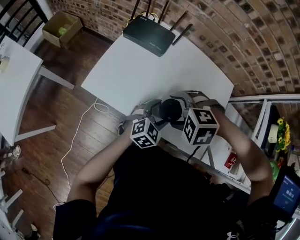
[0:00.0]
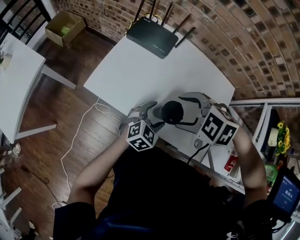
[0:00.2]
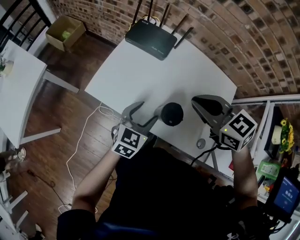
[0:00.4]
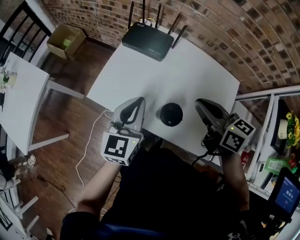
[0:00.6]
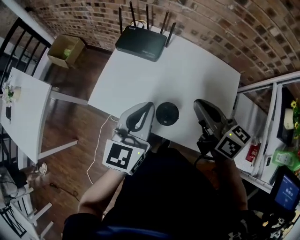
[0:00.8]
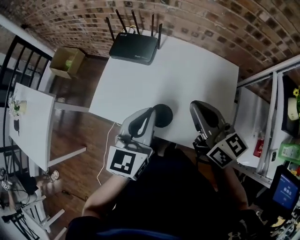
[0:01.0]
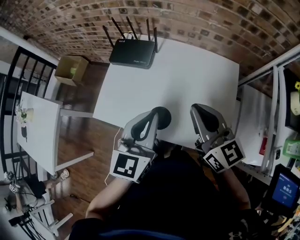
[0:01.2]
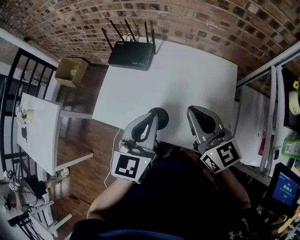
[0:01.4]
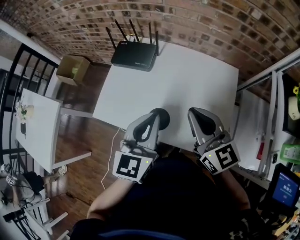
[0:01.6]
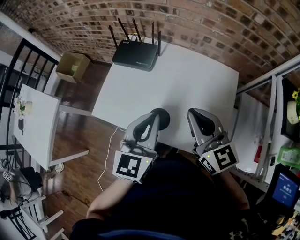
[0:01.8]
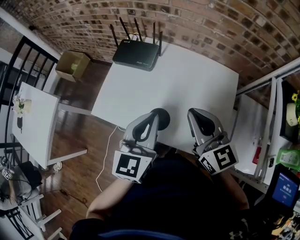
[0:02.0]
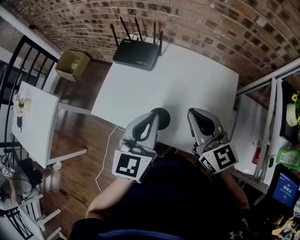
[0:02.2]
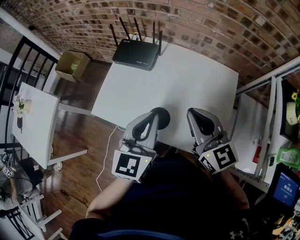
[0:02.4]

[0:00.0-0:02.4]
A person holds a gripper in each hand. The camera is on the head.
0.0 to 1.2 s: The right gripper travels upward by some 15 cm, tilts its fingers approximately 70 degrees upward, and closes its fingers. The left gripper travels upward by approximately 25 cm, changes its angle by roughly 40 degrees, and closes up.
1.2 to 2.4 s: The grippers stay close to where they were, moving slightly.

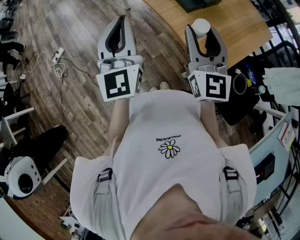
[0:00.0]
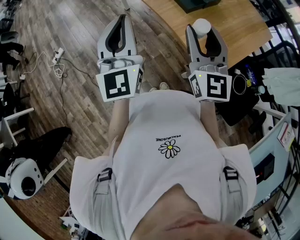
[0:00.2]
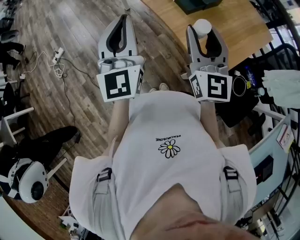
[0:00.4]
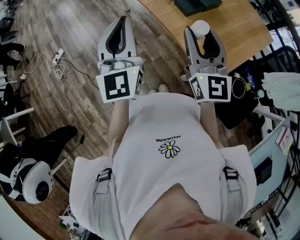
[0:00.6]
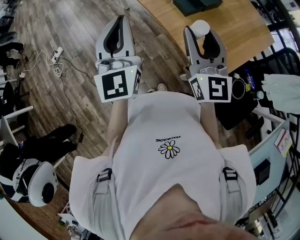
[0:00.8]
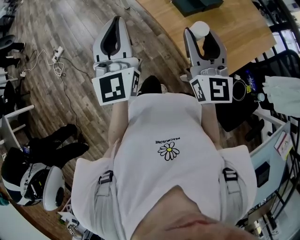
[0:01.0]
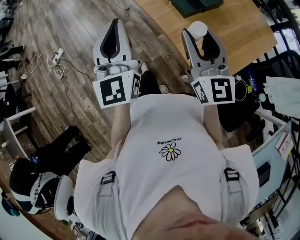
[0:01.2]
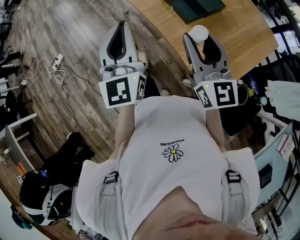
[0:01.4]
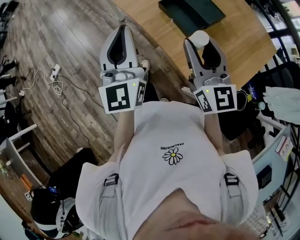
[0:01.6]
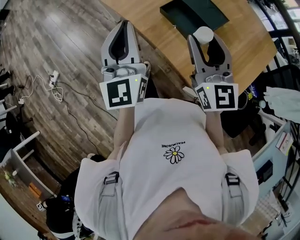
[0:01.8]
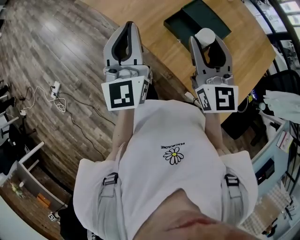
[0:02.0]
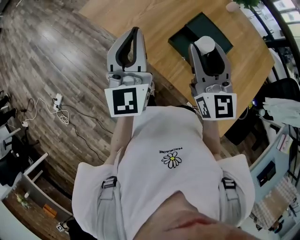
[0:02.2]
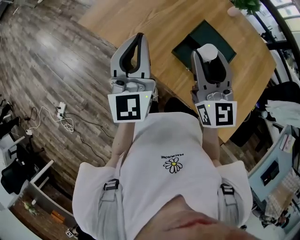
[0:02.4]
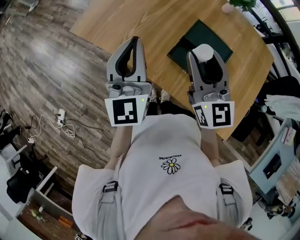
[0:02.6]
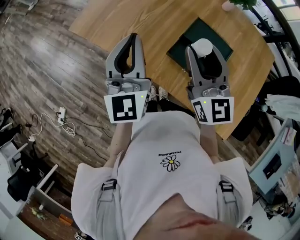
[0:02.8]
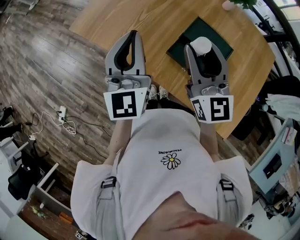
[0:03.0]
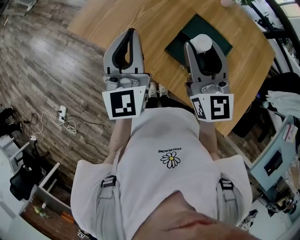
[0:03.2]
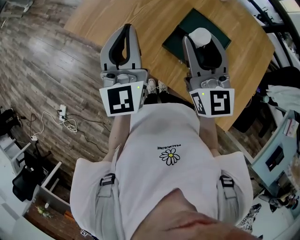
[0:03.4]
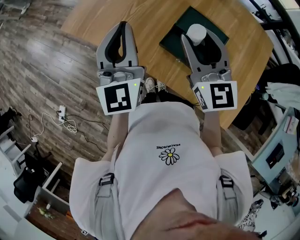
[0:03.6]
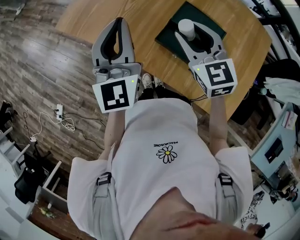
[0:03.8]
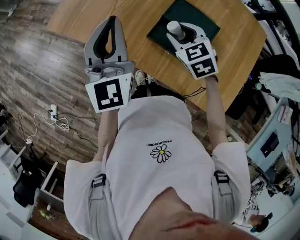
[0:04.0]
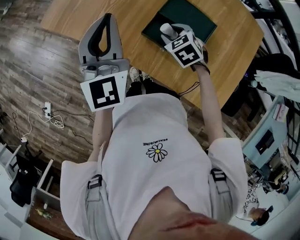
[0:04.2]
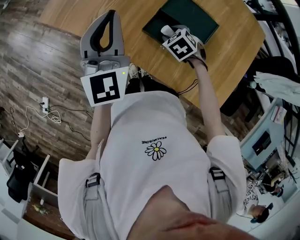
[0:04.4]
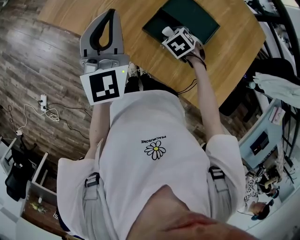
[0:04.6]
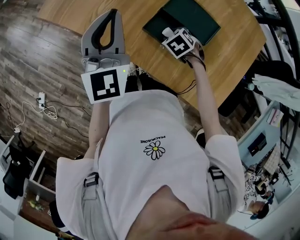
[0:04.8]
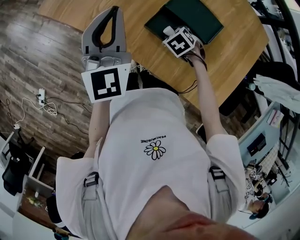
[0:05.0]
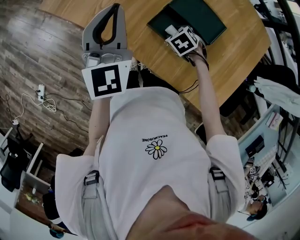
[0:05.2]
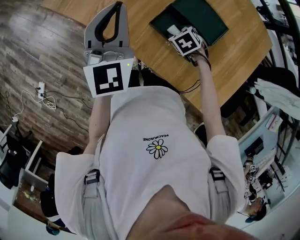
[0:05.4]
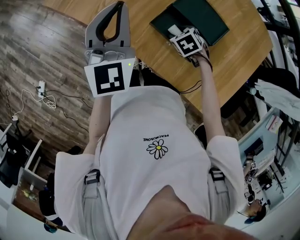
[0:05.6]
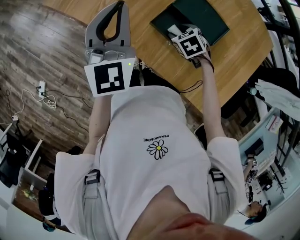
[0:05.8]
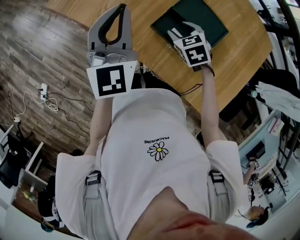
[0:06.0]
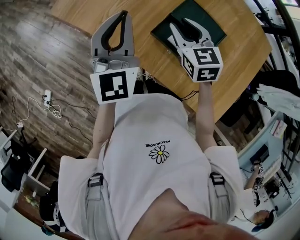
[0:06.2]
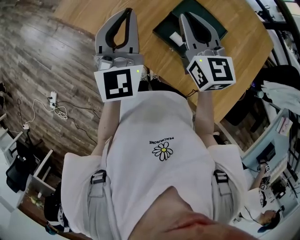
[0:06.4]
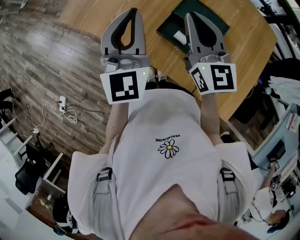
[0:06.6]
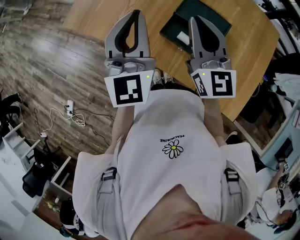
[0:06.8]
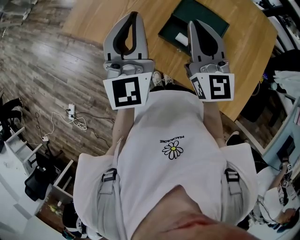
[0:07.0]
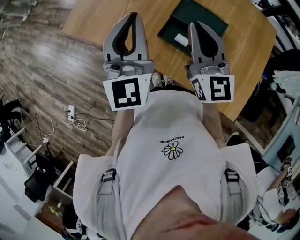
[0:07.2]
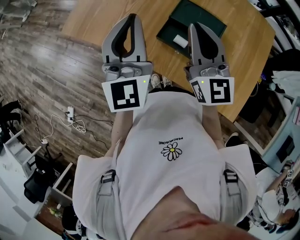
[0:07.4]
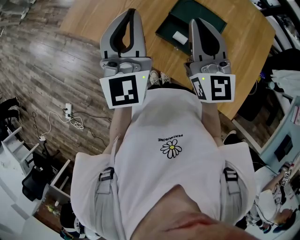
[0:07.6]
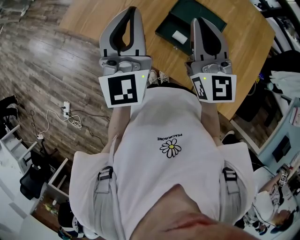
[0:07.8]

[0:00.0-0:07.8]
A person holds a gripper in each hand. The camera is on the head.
0.0 to 1.6 s: The two grippers go roughly 15 cm forward.
1.6 to 3.2 s: Both grippers move forward, roughly 25 cm.
3.2 to 4.6 s: The right gripper travels downward by some 35 cm, and tilts its fingers roughly 80 degrees downward. The left gripper ends up roughly 5 cm from where it was.
4.6 to 6.2 s: The right gripper goes some 20 cm upward, and angles its fingers upward, by about 40 degrees.
6.2 to 7.8 s: The right gripper heads upward and backward, covering about 15 cm, angles its fingers upward, by roughly 40 degrees, and closes its fingers, while the left gripper travels upward by roughly 5 cm.

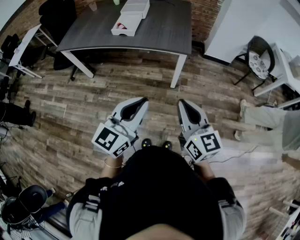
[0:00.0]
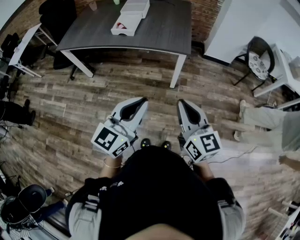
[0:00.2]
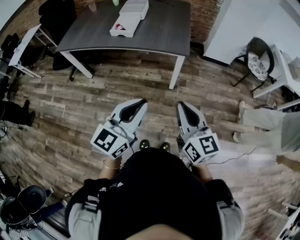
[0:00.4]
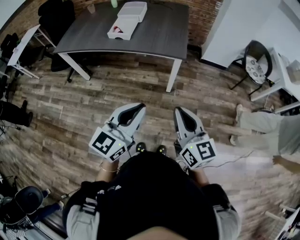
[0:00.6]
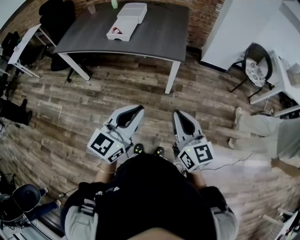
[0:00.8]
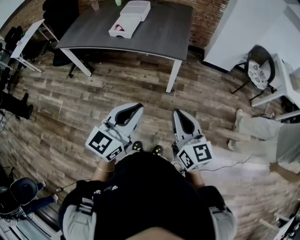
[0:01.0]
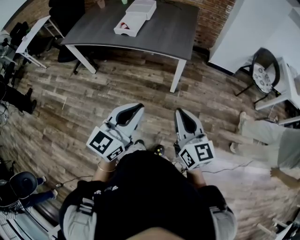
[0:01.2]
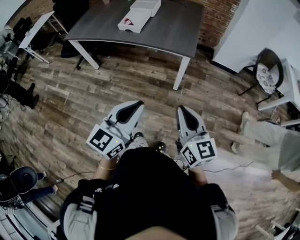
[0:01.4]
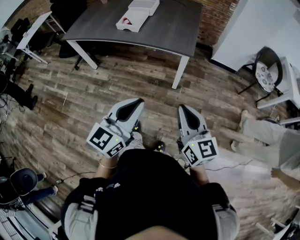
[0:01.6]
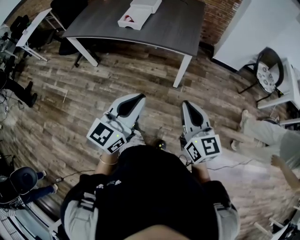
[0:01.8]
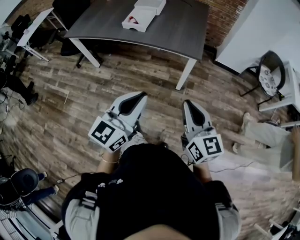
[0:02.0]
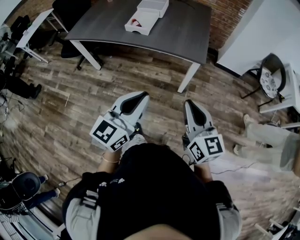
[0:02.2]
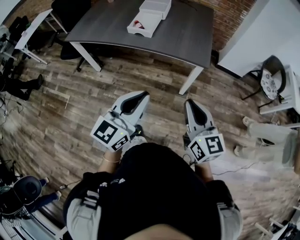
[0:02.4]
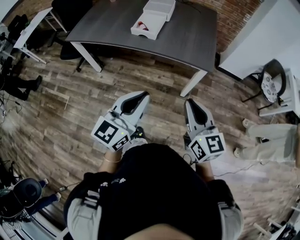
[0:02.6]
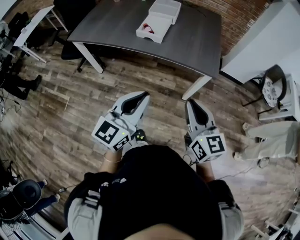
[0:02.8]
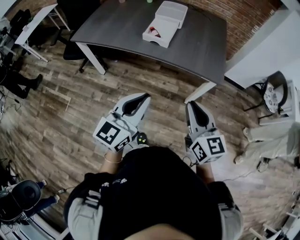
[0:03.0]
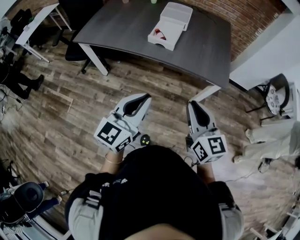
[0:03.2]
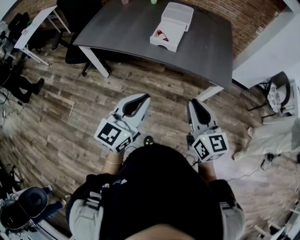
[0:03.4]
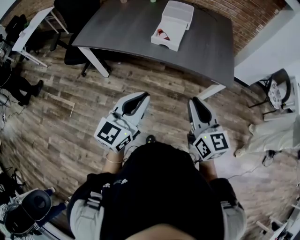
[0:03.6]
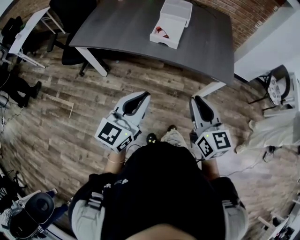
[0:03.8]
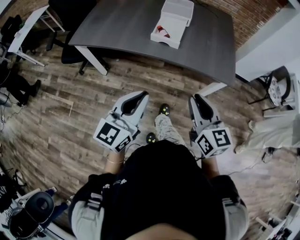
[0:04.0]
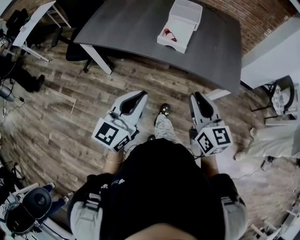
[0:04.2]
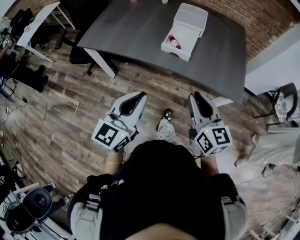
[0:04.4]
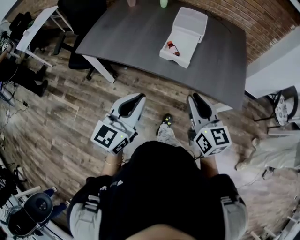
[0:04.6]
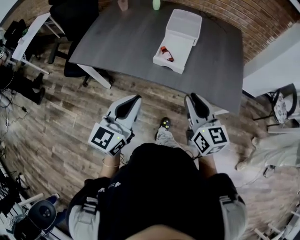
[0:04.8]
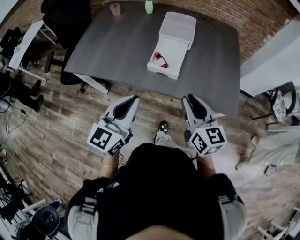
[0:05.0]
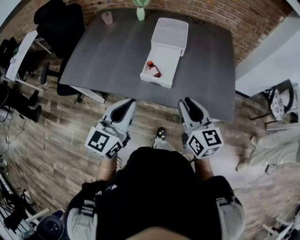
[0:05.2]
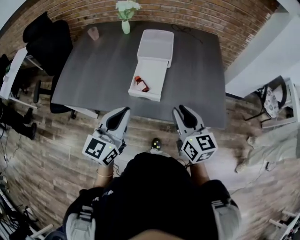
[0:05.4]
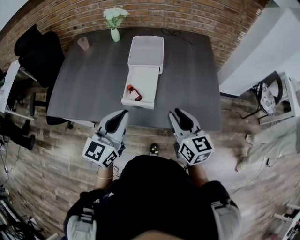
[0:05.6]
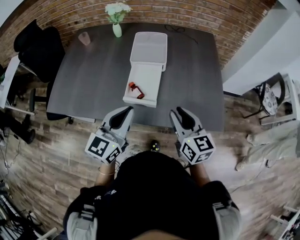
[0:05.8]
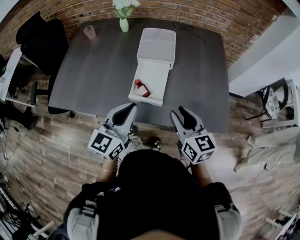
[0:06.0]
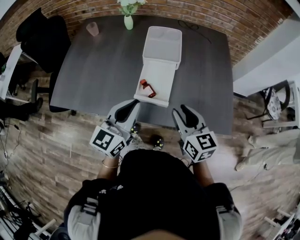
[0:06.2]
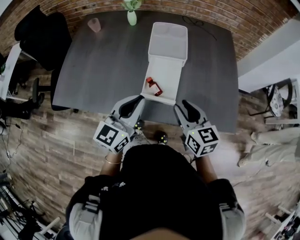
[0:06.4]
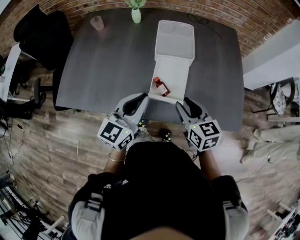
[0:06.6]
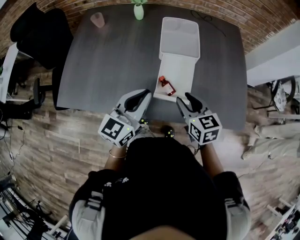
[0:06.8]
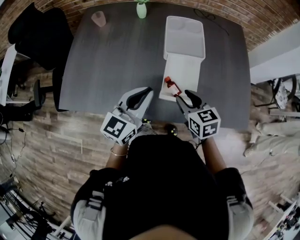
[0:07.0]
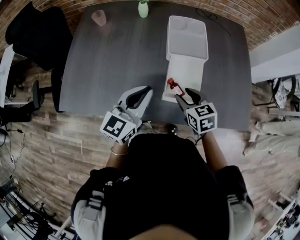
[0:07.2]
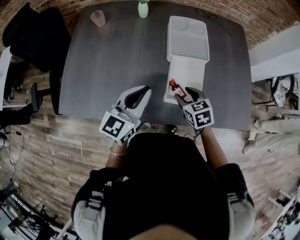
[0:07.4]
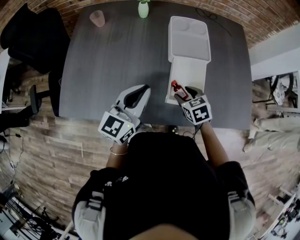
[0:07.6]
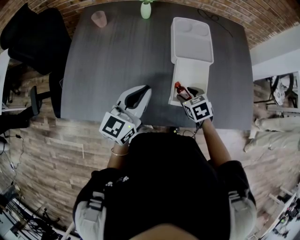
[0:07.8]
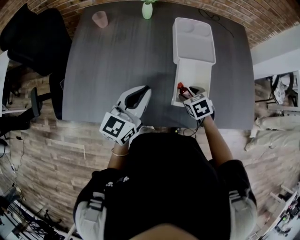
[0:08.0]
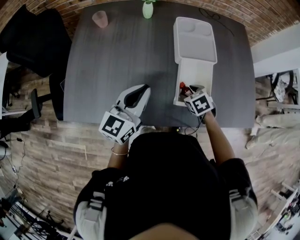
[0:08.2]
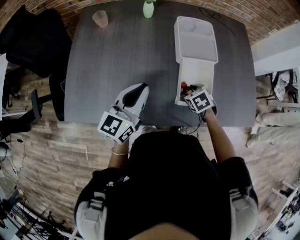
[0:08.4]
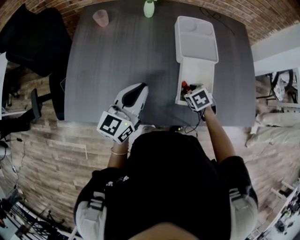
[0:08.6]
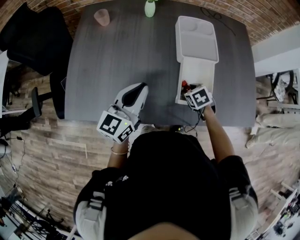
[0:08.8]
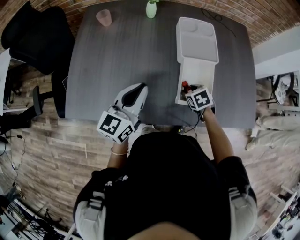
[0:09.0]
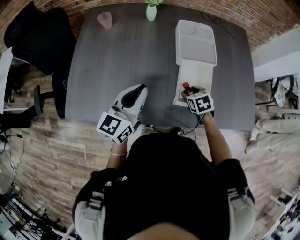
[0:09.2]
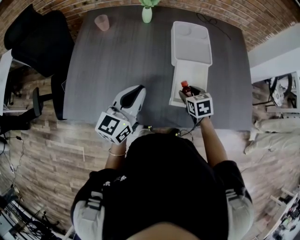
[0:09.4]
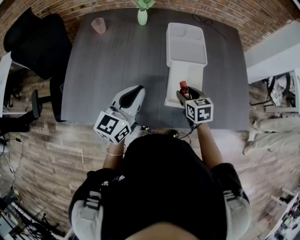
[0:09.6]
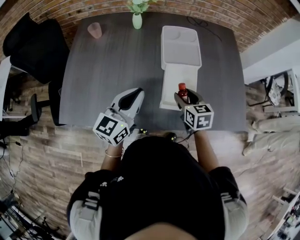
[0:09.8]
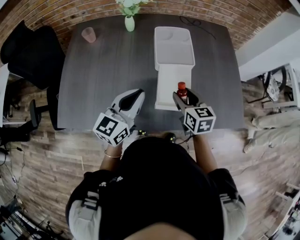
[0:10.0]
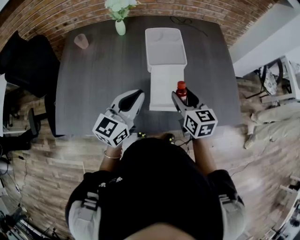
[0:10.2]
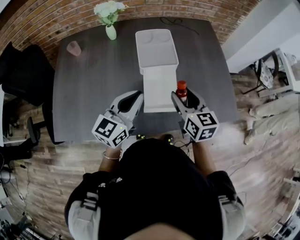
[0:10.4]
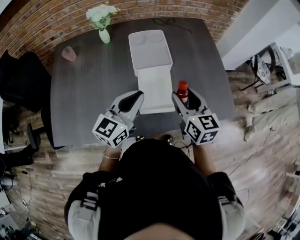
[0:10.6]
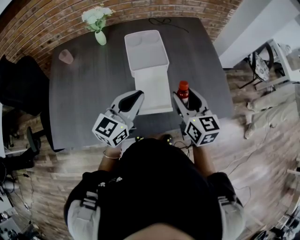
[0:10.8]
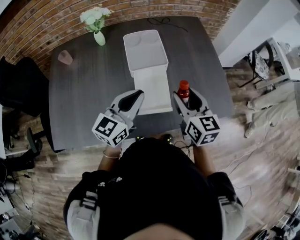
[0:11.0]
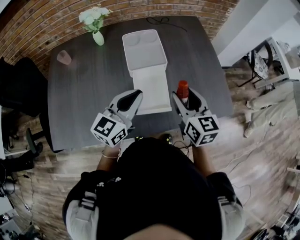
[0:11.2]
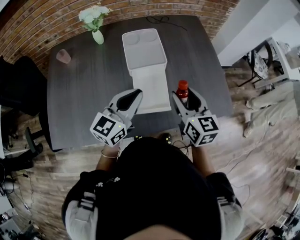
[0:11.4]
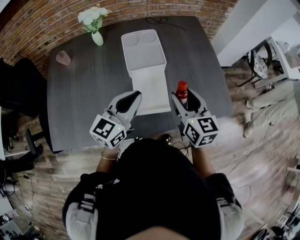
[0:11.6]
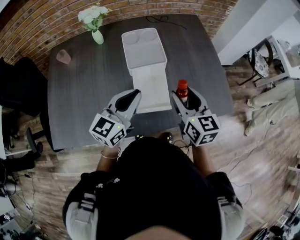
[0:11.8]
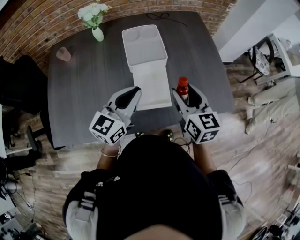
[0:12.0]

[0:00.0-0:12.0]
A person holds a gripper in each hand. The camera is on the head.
0.0 to 1.6 s: The right gripper is displaced to the right by roughly 5 cm.
1.6 to 3.0 s: The grippers both shift to the left and forward by roughly 25 cm.
3.0 to 4.4 s: The right gripper is displaced forward and to the left by roughly 20 cm. The left gripper goes approximately 20 cm to the left and forward.
4.4 to 6.0 s: Both grippers travel together forward, some 25 cm.
6.0 to 7.6 s: The right gripper moves to the left, downward and forward, about 30 cm, tilts its fingers some 40 degrees downward, and opens up. The left gripper moves to the left and forward, approximately 20 cm.
7.6 to 9.0 s: The left gripper goes roughly 5 cm to the left; the right gripper shifts approximately 5 cm downward.
9.0 to 10.4 s: The left gripper is displaced to the right by some 15 cm; the right gripper heads upward and to the right, covering some 25 cm, and tilts its fingers about 40 degrees upward.
10.4 to 12.0 s: The right gripper changes place by roughly 5 cm.

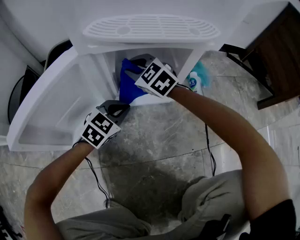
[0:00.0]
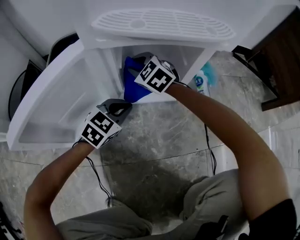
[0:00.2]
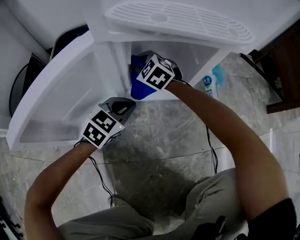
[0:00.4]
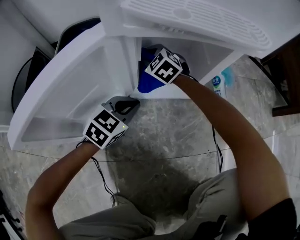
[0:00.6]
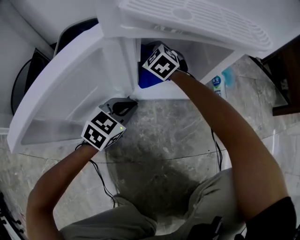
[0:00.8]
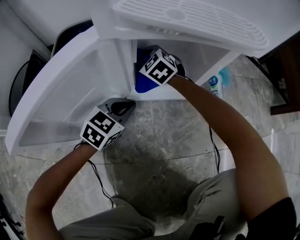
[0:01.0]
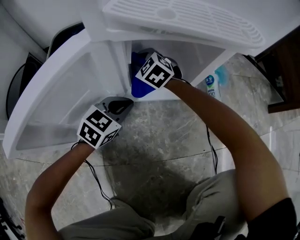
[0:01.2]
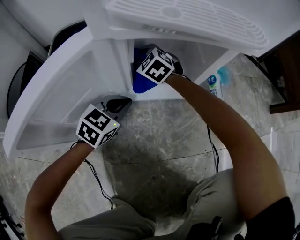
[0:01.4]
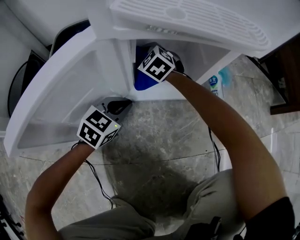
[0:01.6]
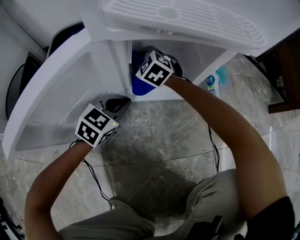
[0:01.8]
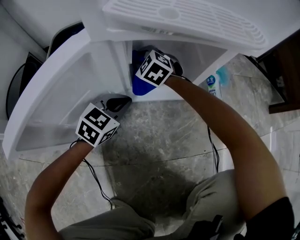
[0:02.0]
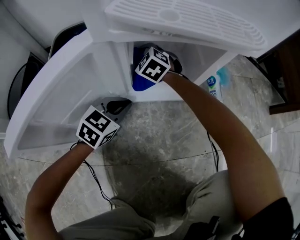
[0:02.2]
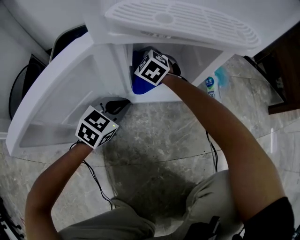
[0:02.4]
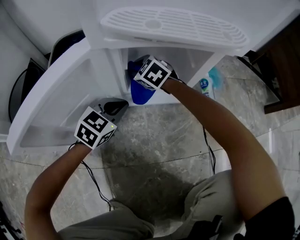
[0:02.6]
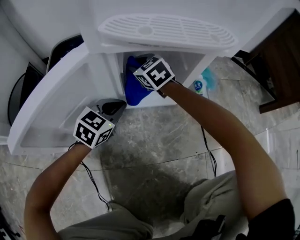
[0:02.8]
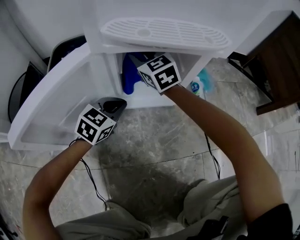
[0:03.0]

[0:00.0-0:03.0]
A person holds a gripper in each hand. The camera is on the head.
0.0 to 1.6 s: The right gripper heads downward and forward, covering some 10 cm. The left gripper goes approximately 5 cm to the left.
1.6 to 3.0 s: The right gripper goes some 15 cm upward, and turns by roughly 30 degrees.
